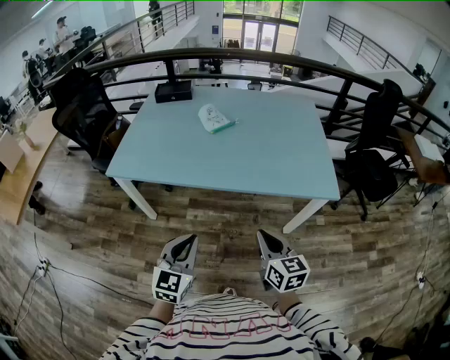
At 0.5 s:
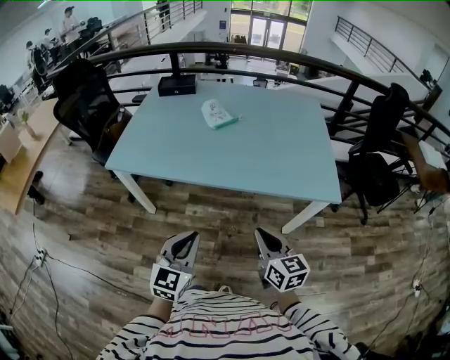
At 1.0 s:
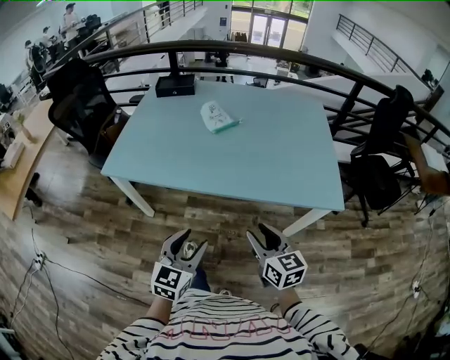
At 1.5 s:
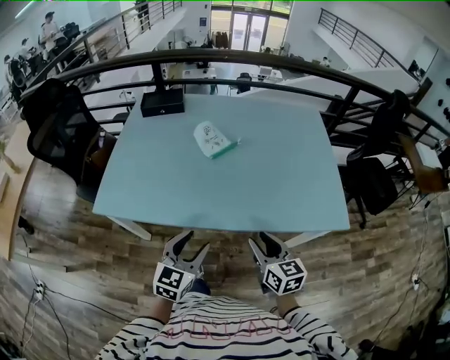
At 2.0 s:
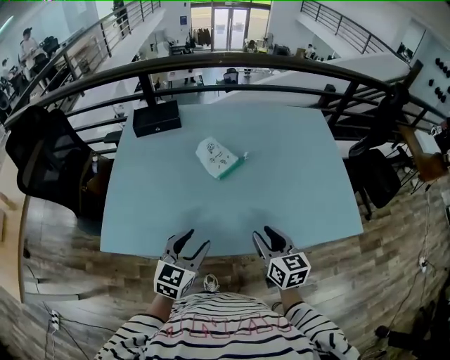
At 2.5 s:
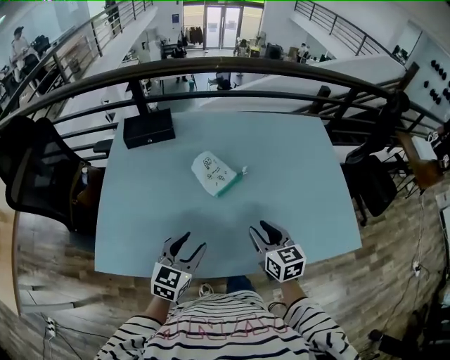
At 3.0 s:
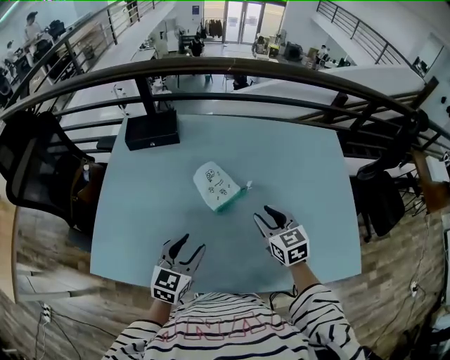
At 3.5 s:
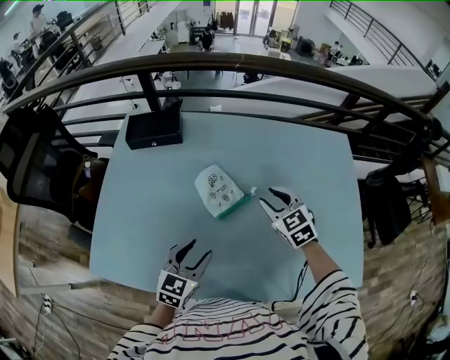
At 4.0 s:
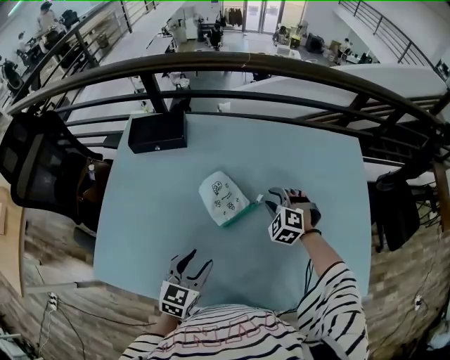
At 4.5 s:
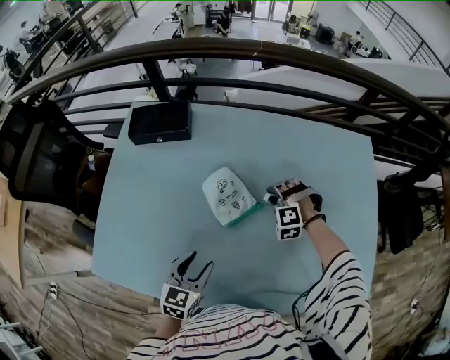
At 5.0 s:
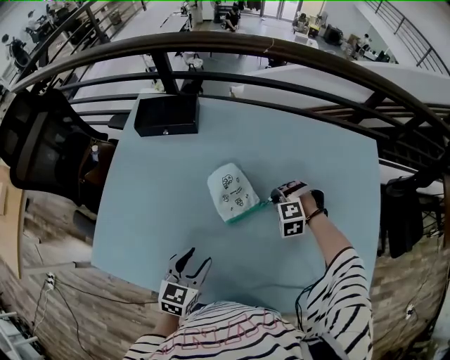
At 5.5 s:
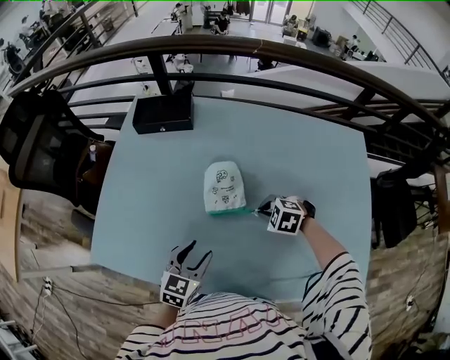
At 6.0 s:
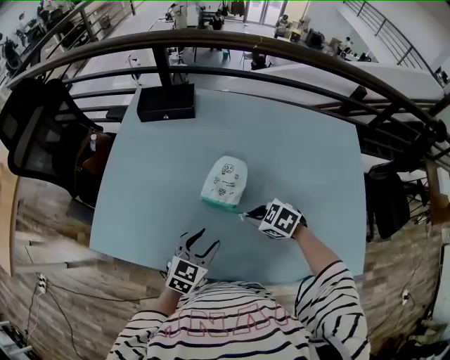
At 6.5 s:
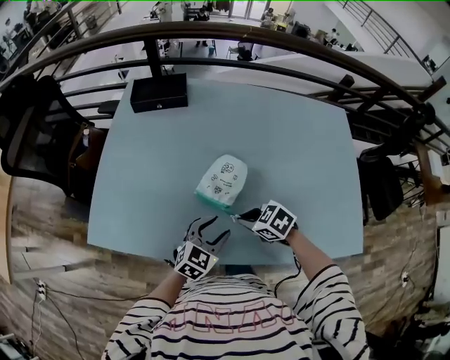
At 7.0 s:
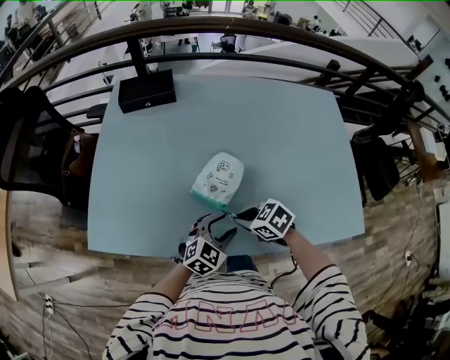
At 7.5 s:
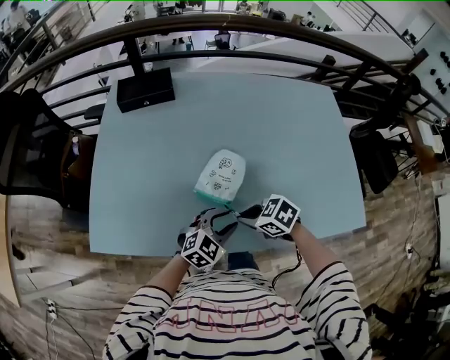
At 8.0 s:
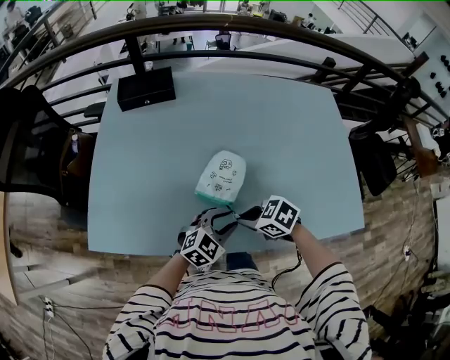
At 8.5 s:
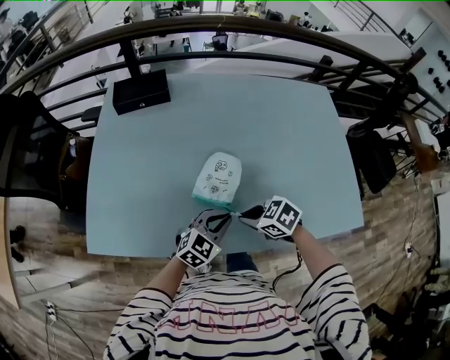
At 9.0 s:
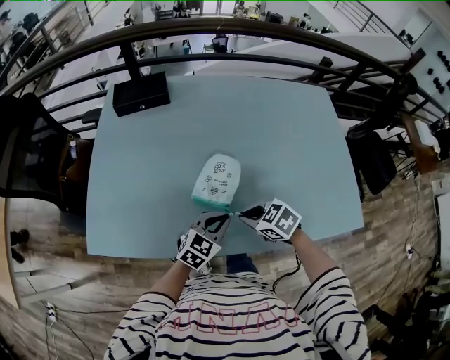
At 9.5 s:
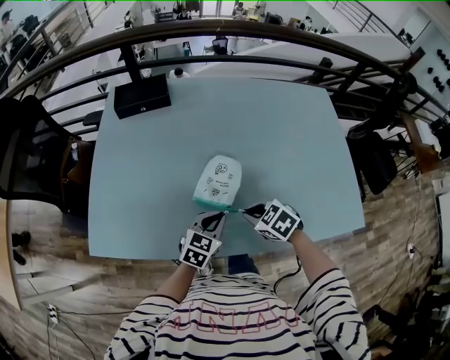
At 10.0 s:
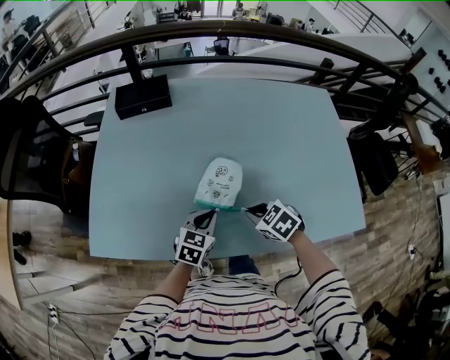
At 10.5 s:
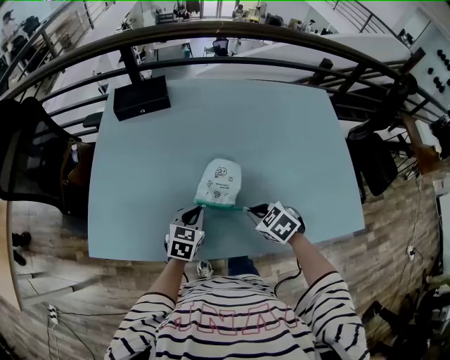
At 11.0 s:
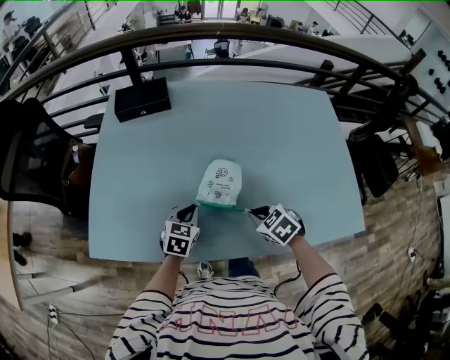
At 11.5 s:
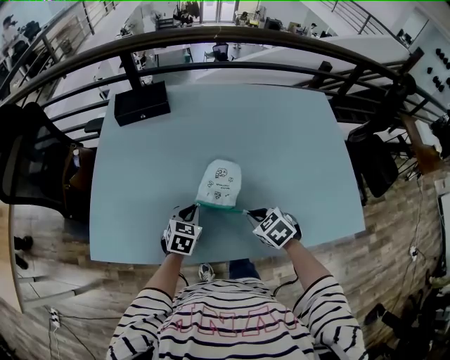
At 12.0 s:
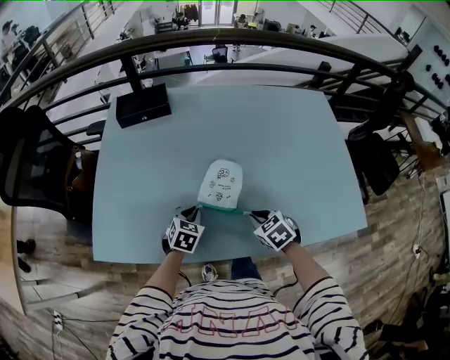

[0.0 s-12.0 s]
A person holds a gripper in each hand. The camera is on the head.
0.0 to 2.0 s: The grippers both shift forward by about 35 cm. The right gripper opens its fingers. The left gripper opens.
2.0 to 4.0 s: The left gripper heads forward, covering about 20 cm. Meanwhile the right gripper moves forward, some 35 cm, and rotates around the line of its fingers by approximately 70 degrees, counterclockwise from behind.
4.0 to 6.0 s: The left gripper ends up about 5 cm from where it was; the right gripper shifts by roughly 20 cm, changes its angle by roughly 40 degrees, and closes up.
6.0 to 8.0 s: The right gripper changes place by some 15 cm. The left gripper ends up approximately 10 cm from where it was, and turns by some 30 degrees.
8.0 to 10.0 s: The left gripper moves some 5 cm, rotates roughly 30 degrees, and closes. The right gripper changes place by some 5 cm.
10.0 to 12.0 s: The left gripper travels to the left by roughly 5 cm.

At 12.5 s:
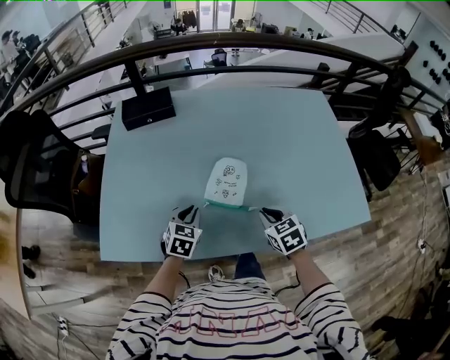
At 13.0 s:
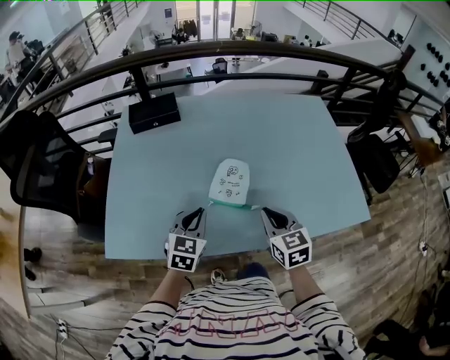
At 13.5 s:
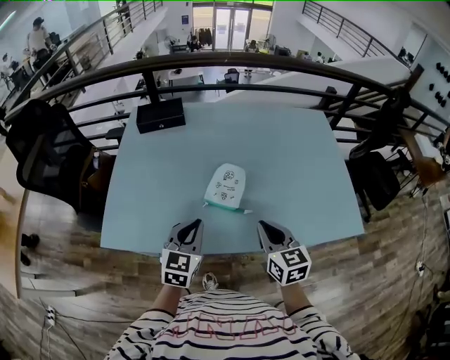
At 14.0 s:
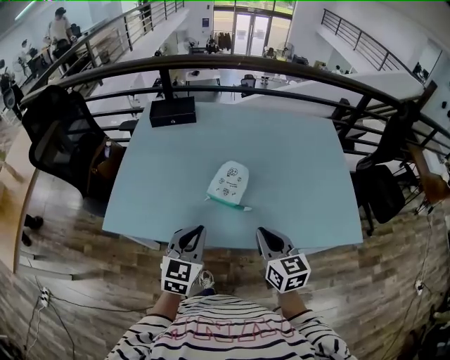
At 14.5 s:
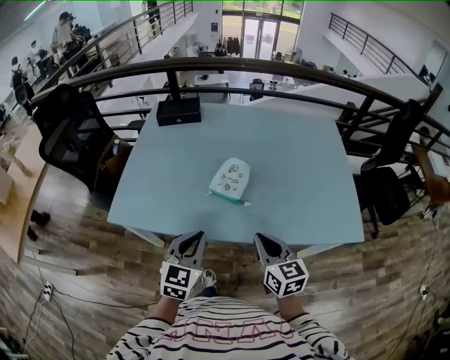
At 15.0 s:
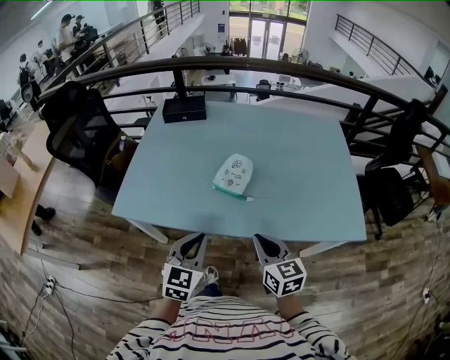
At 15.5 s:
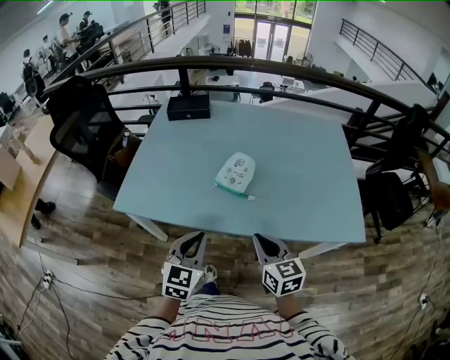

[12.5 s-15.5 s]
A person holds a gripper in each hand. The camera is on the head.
12.5 to 14.0 s: The right gripper shifts about 20 cm upward and backward, and rotates approximately 30 degrees, while the left gripper travels backward and upward by some 20 cm, and swivels some 20 degrees.
14.0 to 15.5 s: Both grippers travel together backward, some 10 cm.

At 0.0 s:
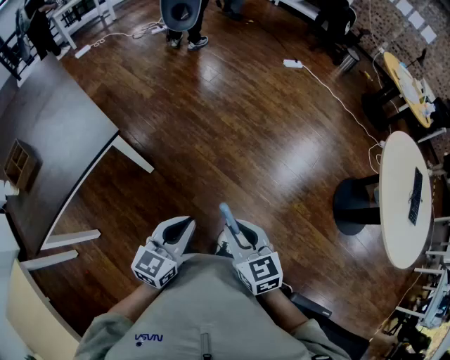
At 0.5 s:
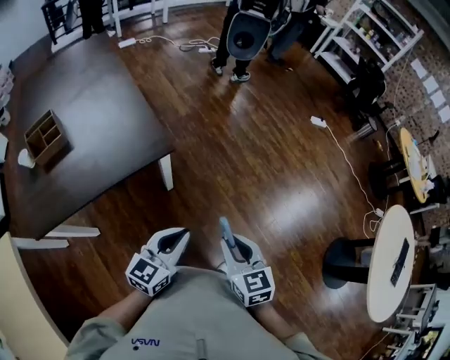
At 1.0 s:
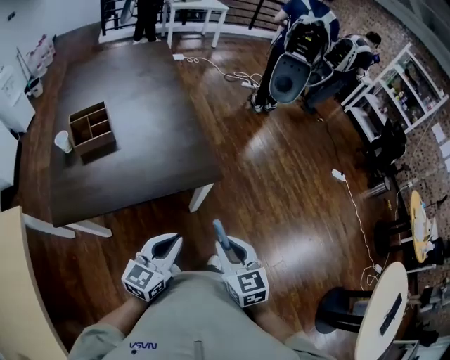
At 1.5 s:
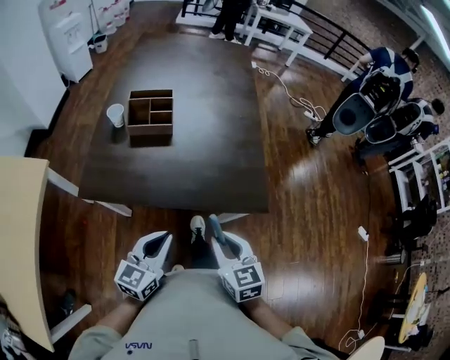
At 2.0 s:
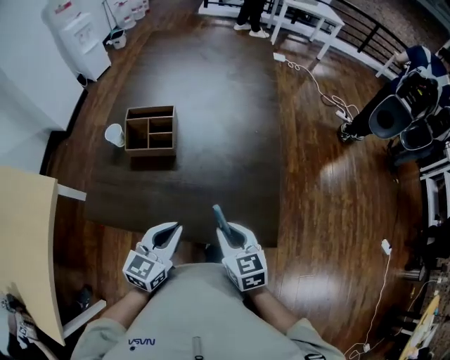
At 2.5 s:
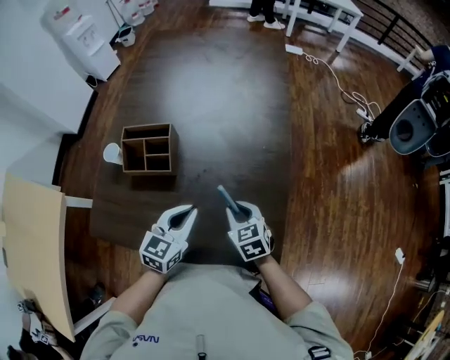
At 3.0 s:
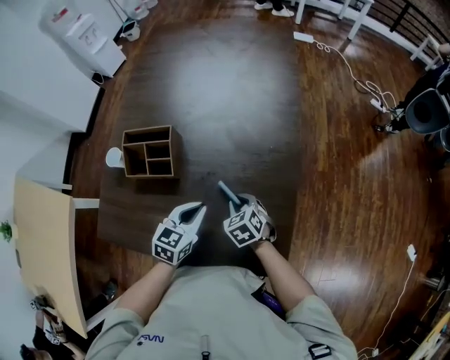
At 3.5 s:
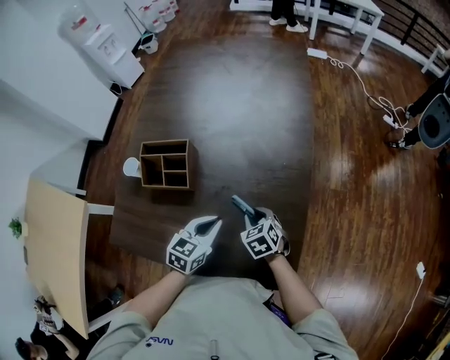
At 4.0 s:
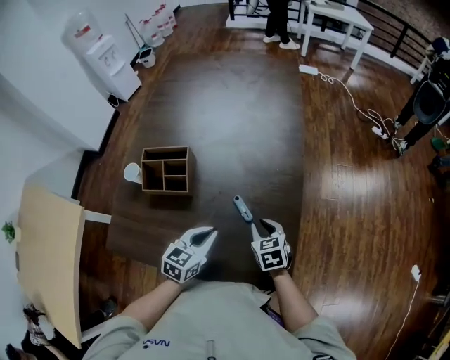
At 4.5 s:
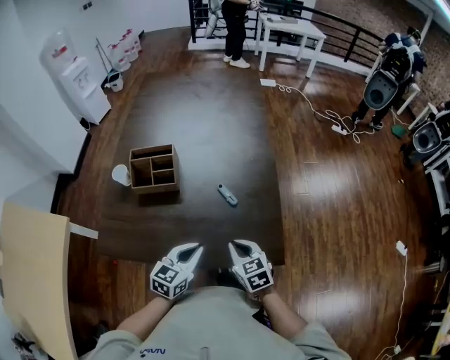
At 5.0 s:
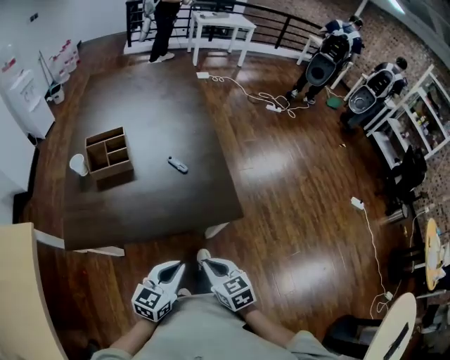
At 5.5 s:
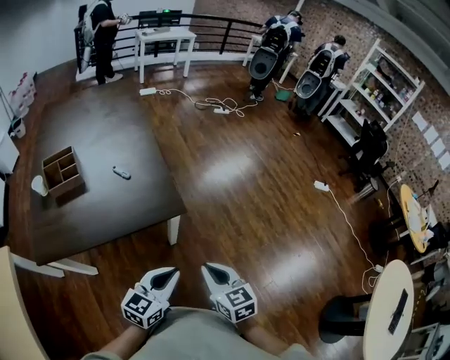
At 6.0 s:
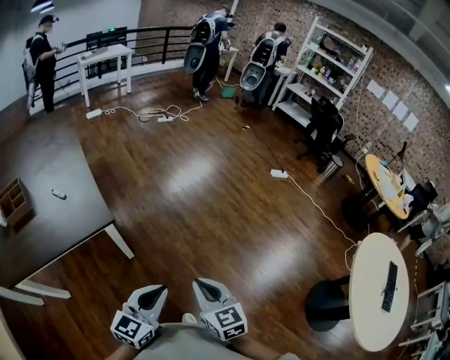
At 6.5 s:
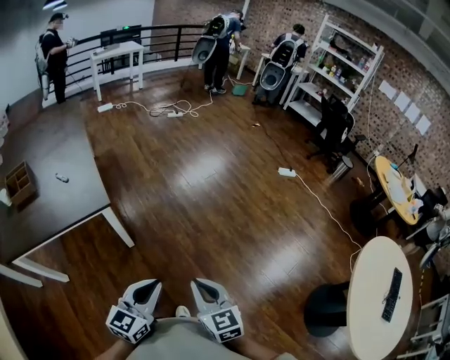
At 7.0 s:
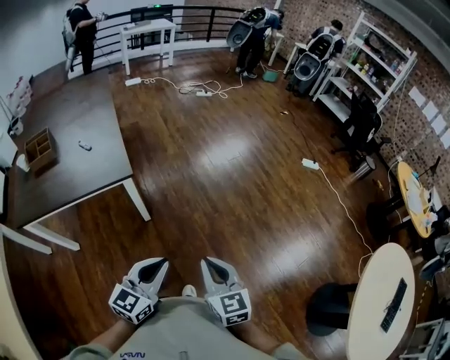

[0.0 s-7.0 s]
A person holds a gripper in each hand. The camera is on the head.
0.0 to 2.0 s: The pair of grippers is taken about 60 cm. The right gripper swivels about 50 degrees. The left gripper rotates about 50 degrees.
2.0 to 3.5 s: The right gripper heads forward and downward, covering about 20 cm, and changes its angle by roughly 30 degrees. The left gripper is displaced forward, downward and to the right by approximately 20 cm.
3.5 to 5.0 s: The two grippers go about 35 cm backward. The left gripper changes its angle by approximately 20 degrees. The right gripper rotates approximately 30 degrees, and closes up.
5.0 to 7.0 s: The left gripper changes place by approximately 40 cm. The right gripper moves approximately 40 cm, and rotates about 30 degrees.

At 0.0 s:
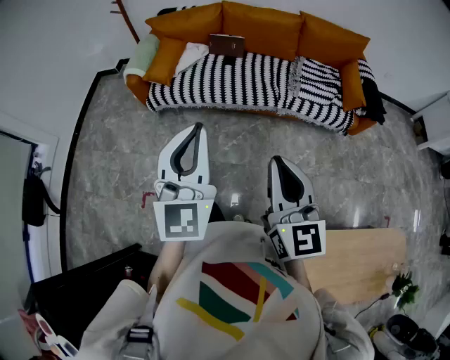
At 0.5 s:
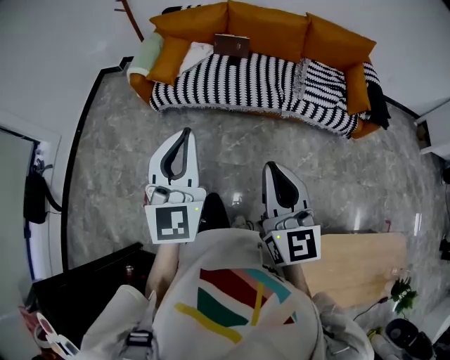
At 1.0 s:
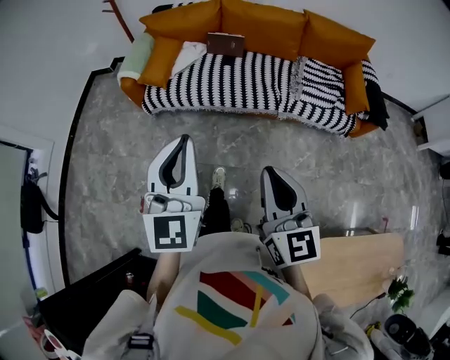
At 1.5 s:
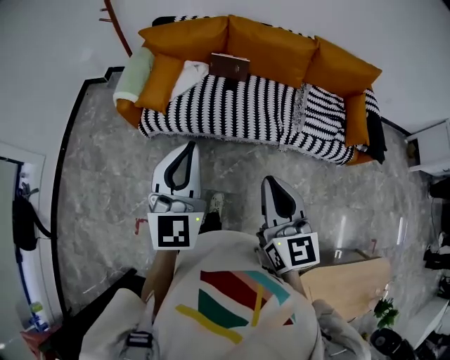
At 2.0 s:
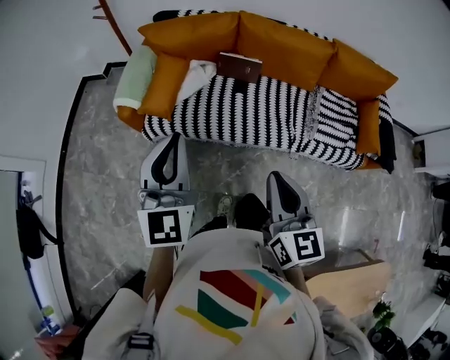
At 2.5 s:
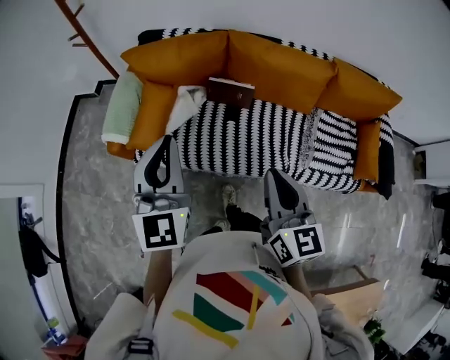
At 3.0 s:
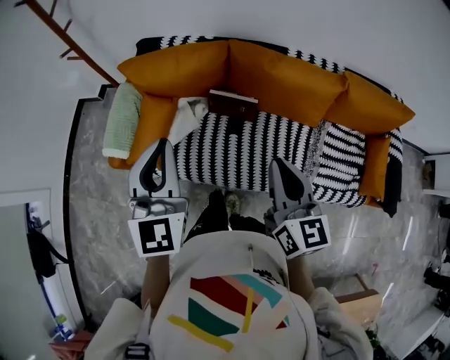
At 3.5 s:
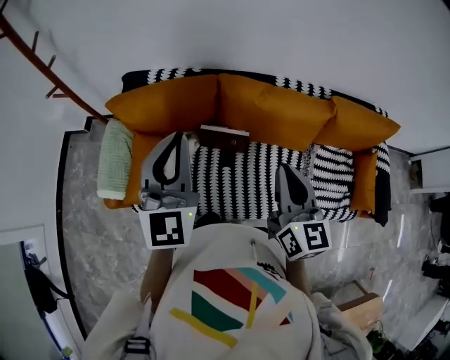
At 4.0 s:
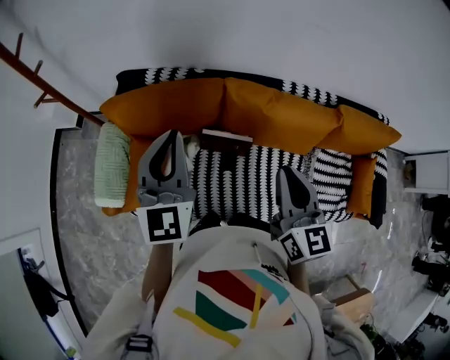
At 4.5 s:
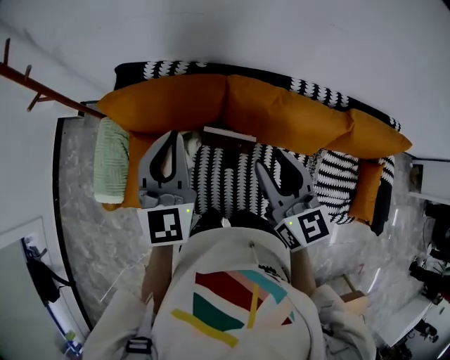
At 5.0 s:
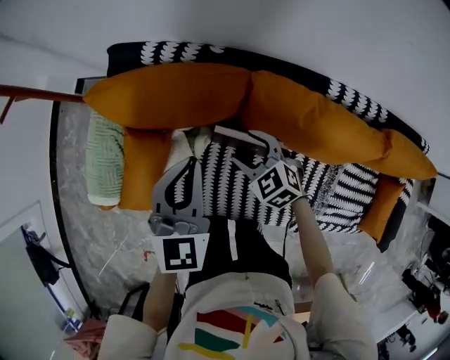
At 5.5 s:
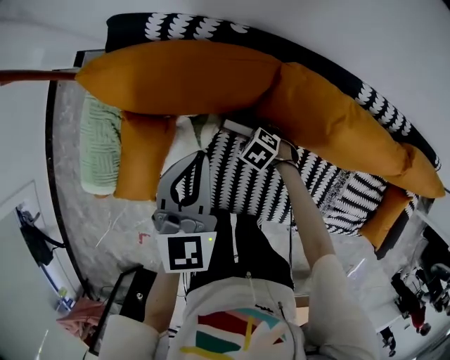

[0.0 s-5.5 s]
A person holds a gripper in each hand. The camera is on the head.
0.0 to 2.0 s: The two grippers go some 35 cm forward.
2.0 to 3.5 s: The grippers both shift forward by some 40 cm.
3.5 to 5.5 s: The right gripper goes approximately 50 cm downward, tips its fingers downward by approximately 70 degrees, and opens its fingers. Meanwhile the left gripper moves downward, roughly 25 cm, and turns by approximately 30 degrees.
